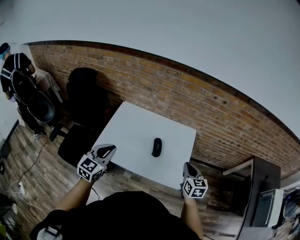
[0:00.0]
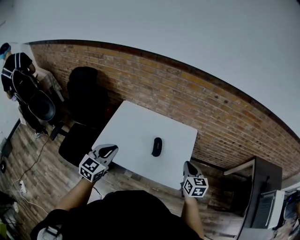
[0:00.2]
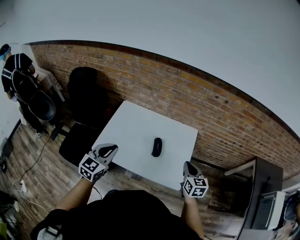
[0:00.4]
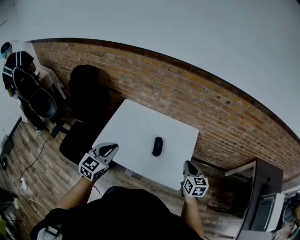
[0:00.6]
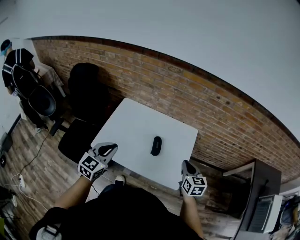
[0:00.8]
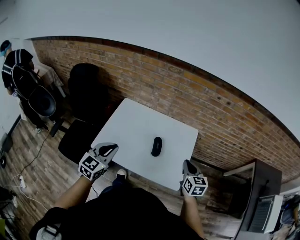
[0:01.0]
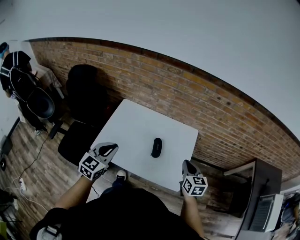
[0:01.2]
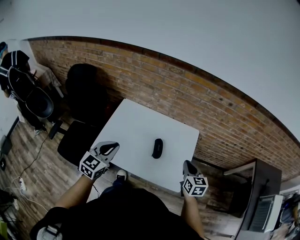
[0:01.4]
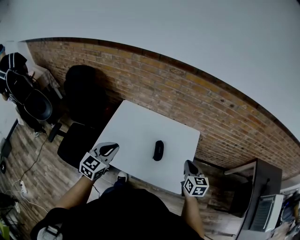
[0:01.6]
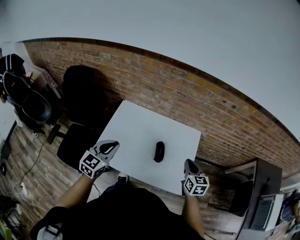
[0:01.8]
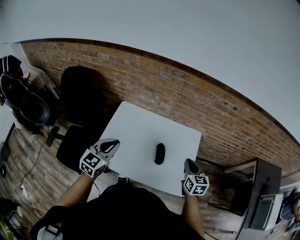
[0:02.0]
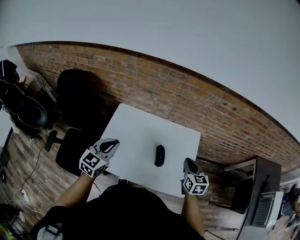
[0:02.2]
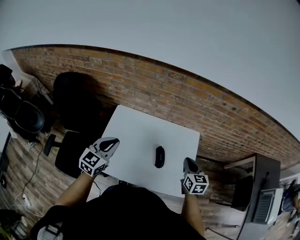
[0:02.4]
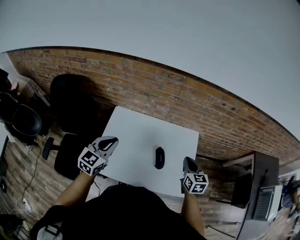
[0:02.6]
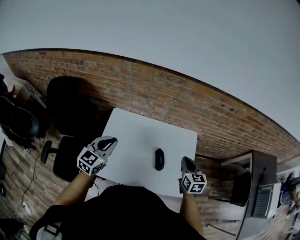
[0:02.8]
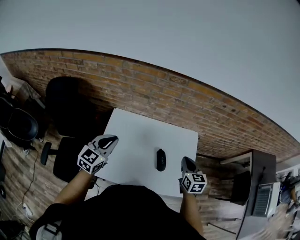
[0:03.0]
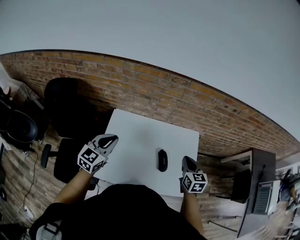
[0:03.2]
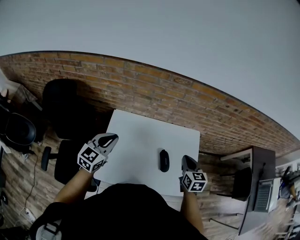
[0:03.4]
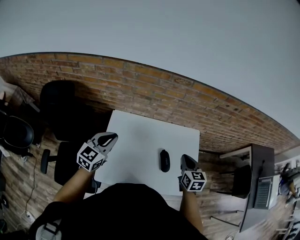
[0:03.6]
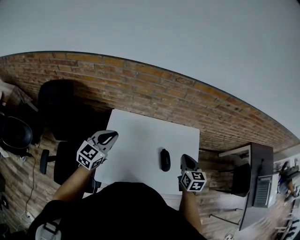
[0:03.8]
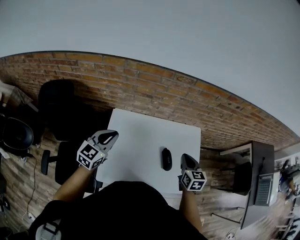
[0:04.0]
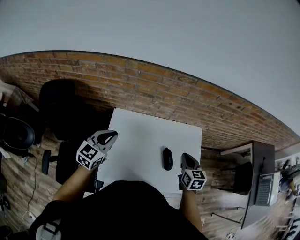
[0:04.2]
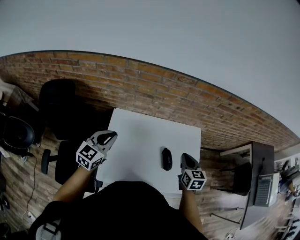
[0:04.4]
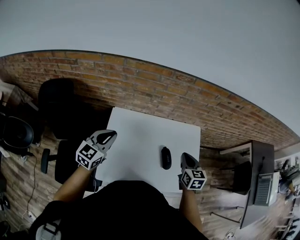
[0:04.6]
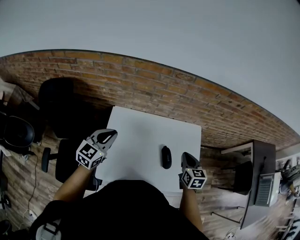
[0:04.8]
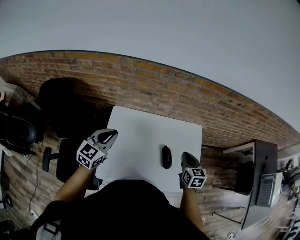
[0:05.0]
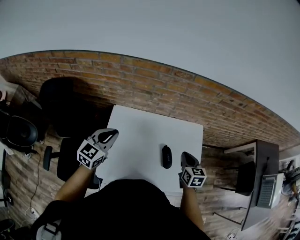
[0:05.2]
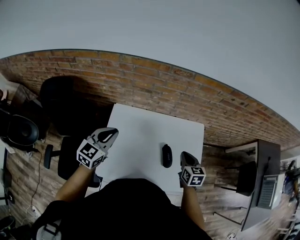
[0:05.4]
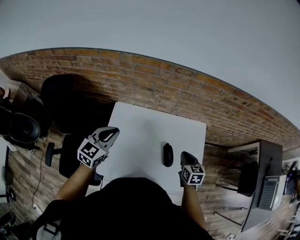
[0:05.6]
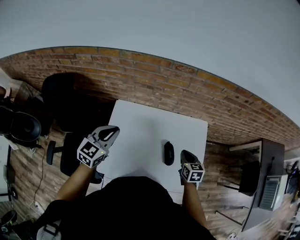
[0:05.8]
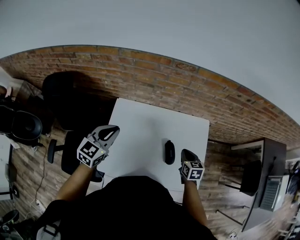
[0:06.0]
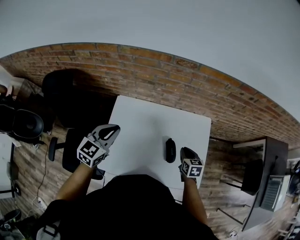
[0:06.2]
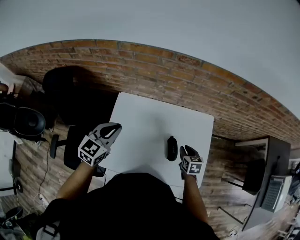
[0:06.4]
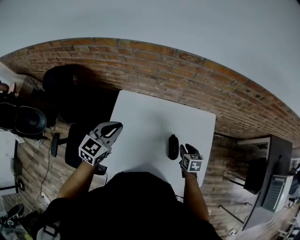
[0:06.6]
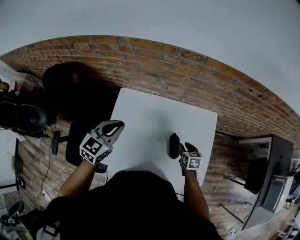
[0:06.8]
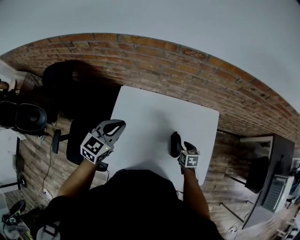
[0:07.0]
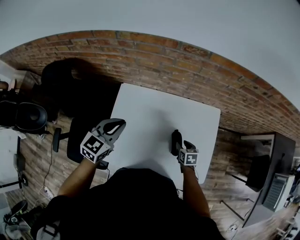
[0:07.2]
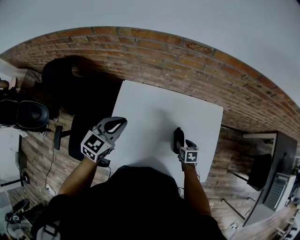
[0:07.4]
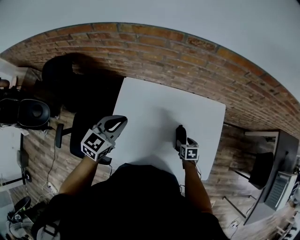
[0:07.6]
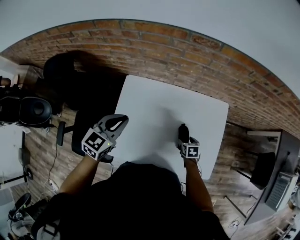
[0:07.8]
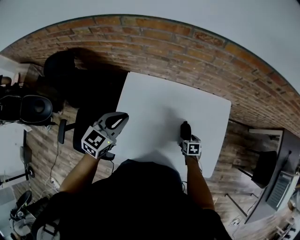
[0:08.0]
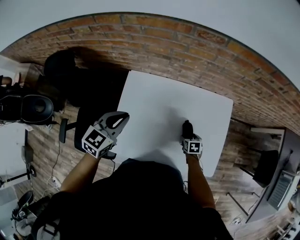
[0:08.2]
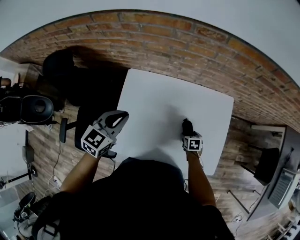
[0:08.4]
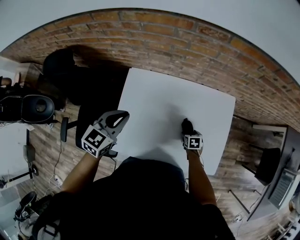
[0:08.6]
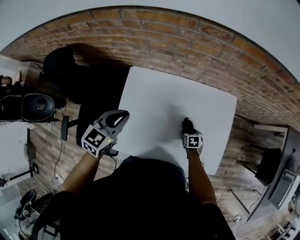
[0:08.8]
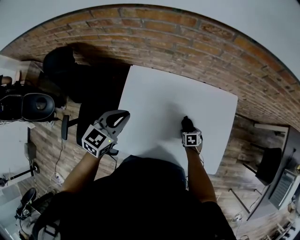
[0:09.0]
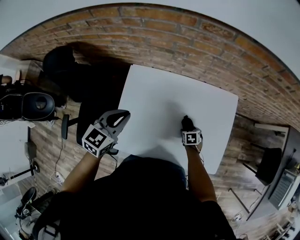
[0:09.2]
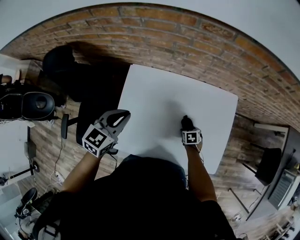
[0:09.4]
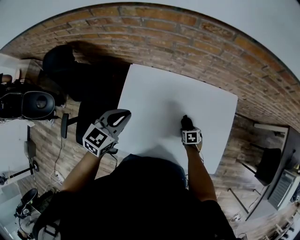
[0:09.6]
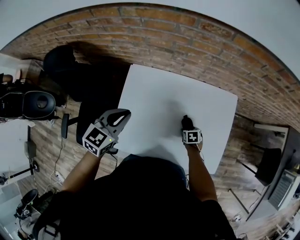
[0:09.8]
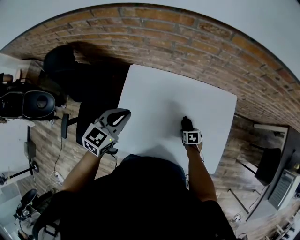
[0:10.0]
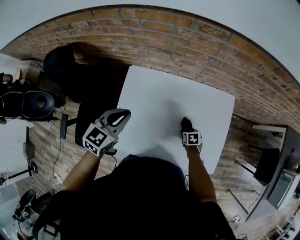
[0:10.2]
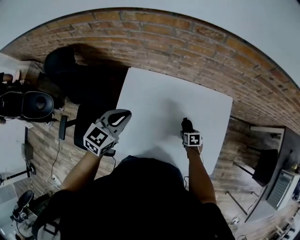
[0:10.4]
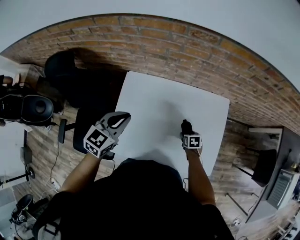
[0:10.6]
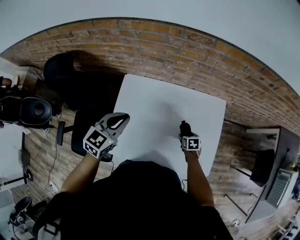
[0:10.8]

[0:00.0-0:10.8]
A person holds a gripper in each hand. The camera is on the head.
0:00.0 to 0:01.6: Both grippers travel together forward, roughly 5 cm.
0:01.6 to 0:03.0: The right gripper is displaced to the left and forward by some 15 cm. The left gripper is displaced forward and to the left by about 20 cm.
0:03.0 to 0:04.6: The grippers both shift to the left by roughly 5 cm.
0:04.6 to 0:06.2: The right gripper heads downward, covering about 15 cm.
0:06.2 to 0:07.8: The right gripper moves downward, approximately 15 cm, and opens up.
0:07.8 to 0:09.2: The right gripper is displaced downward by approximately 10 cm.
0:09.2 to 0:10.8: The right gripper travels upward by about 5 cm.

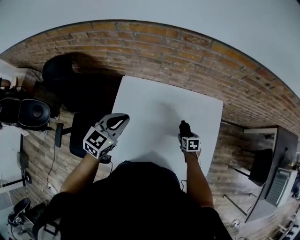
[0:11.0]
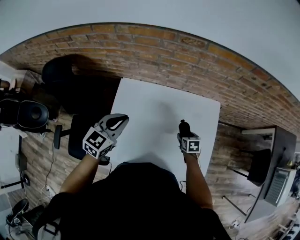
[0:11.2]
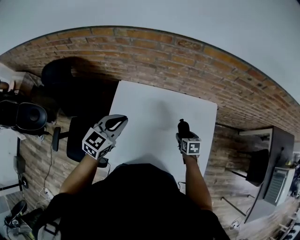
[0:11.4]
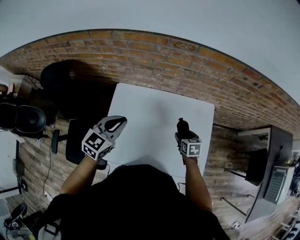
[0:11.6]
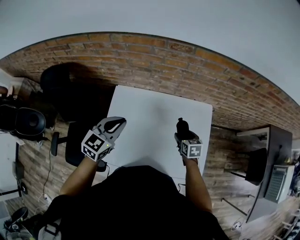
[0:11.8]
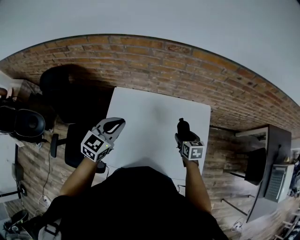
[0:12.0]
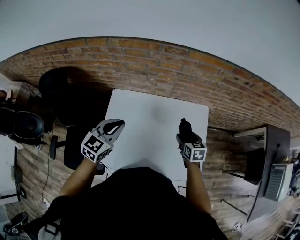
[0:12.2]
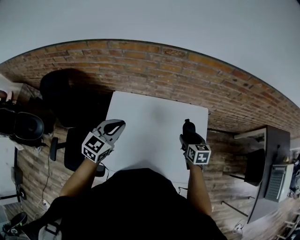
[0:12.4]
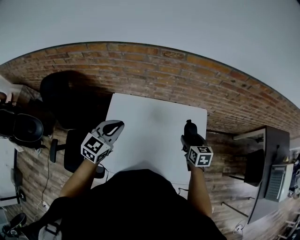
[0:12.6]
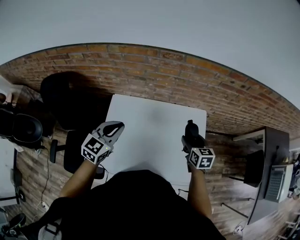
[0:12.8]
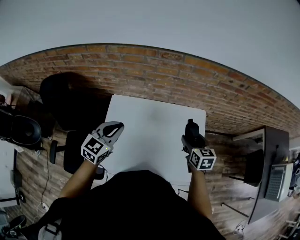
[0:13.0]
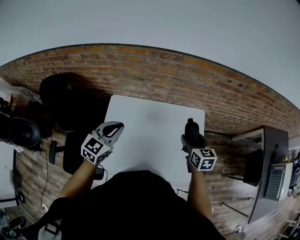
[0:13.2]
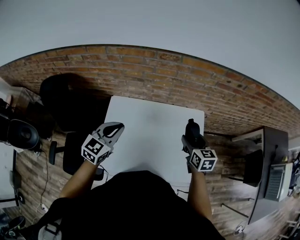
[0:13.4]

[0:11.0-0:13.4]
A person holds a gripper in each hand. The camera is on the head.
0:11.0 to 0:12.2: The right gripper goes roughly 15 cm upward, and changes its angle by roughly 20 degrees.
0:12.2 to 0:13.4: The right gripper shifts about 10 cm upward.

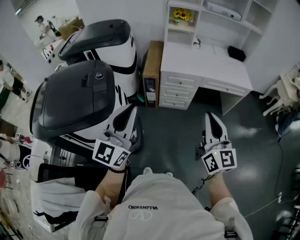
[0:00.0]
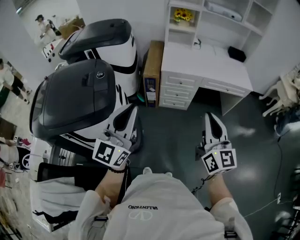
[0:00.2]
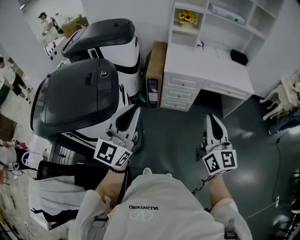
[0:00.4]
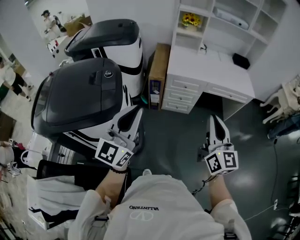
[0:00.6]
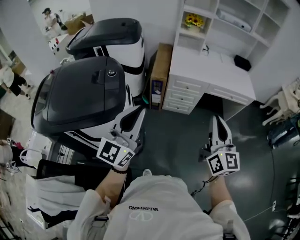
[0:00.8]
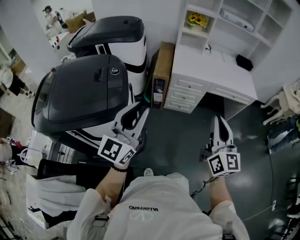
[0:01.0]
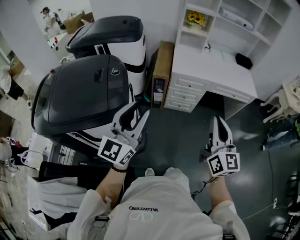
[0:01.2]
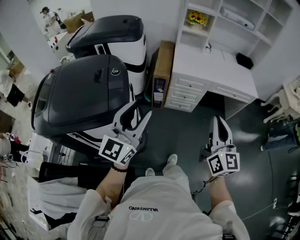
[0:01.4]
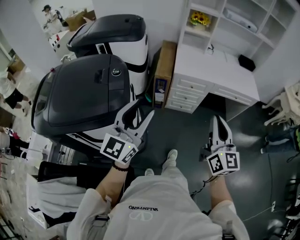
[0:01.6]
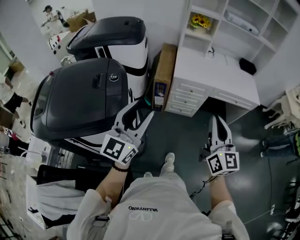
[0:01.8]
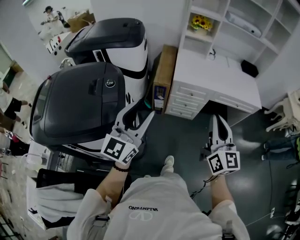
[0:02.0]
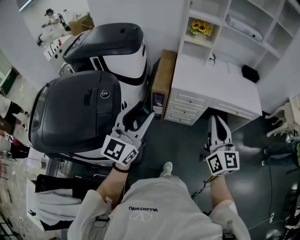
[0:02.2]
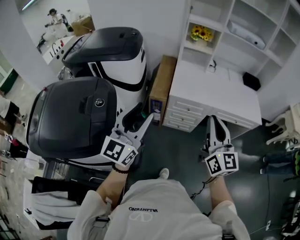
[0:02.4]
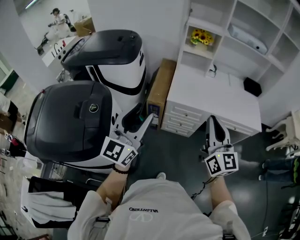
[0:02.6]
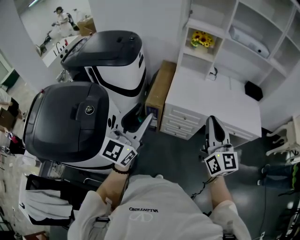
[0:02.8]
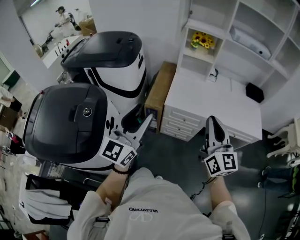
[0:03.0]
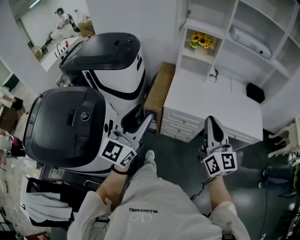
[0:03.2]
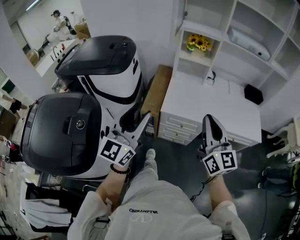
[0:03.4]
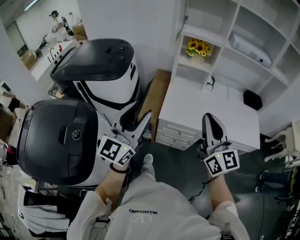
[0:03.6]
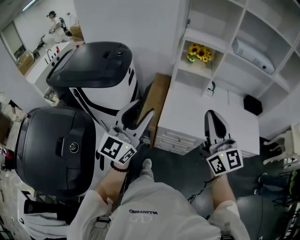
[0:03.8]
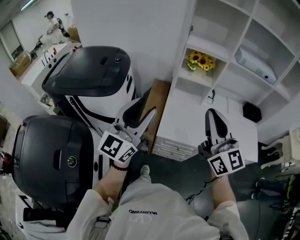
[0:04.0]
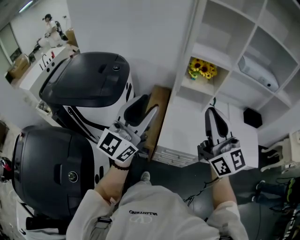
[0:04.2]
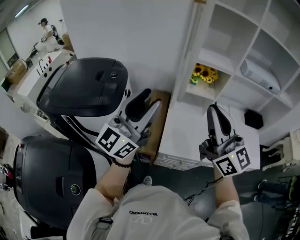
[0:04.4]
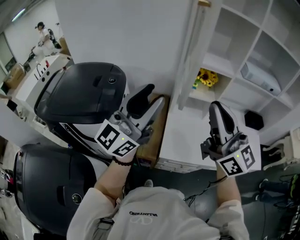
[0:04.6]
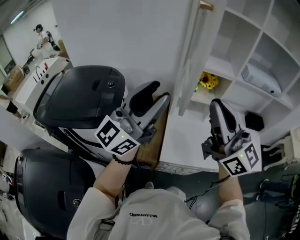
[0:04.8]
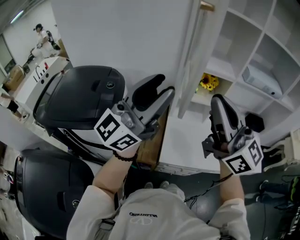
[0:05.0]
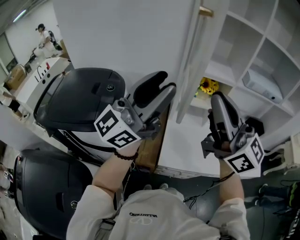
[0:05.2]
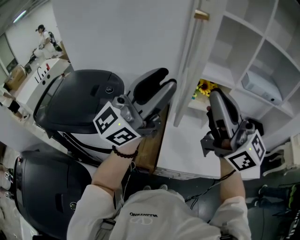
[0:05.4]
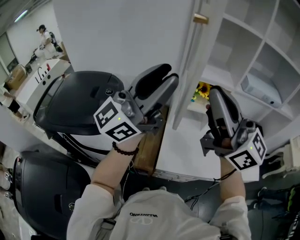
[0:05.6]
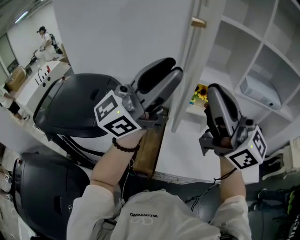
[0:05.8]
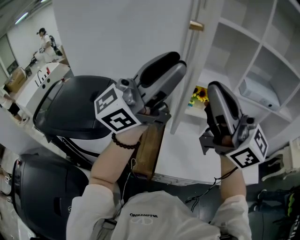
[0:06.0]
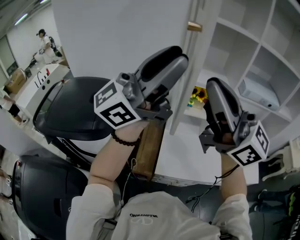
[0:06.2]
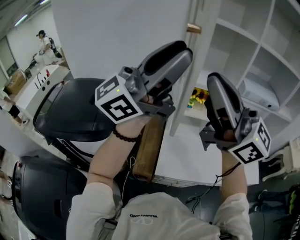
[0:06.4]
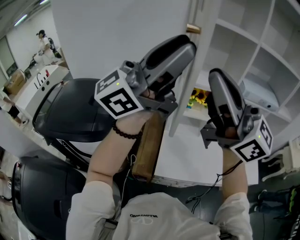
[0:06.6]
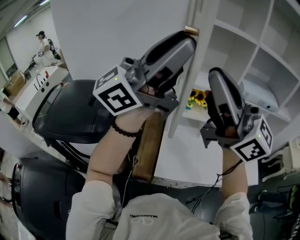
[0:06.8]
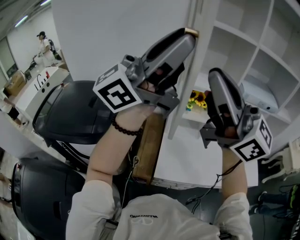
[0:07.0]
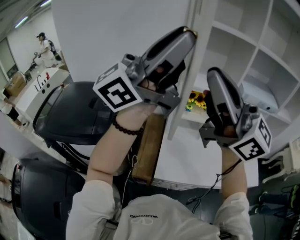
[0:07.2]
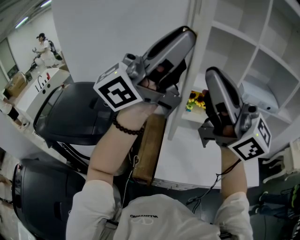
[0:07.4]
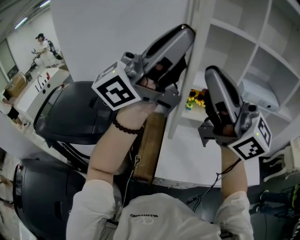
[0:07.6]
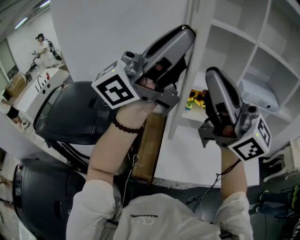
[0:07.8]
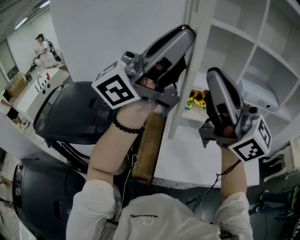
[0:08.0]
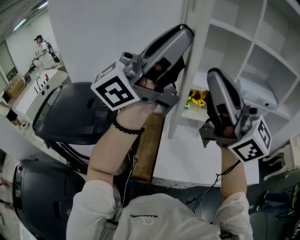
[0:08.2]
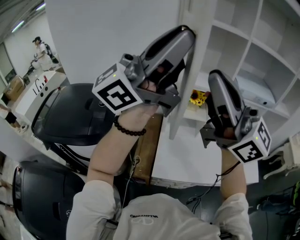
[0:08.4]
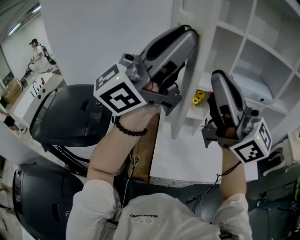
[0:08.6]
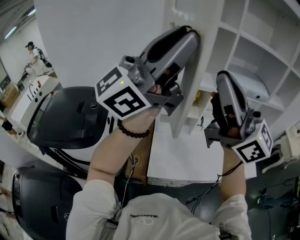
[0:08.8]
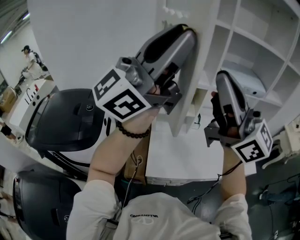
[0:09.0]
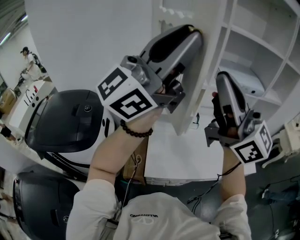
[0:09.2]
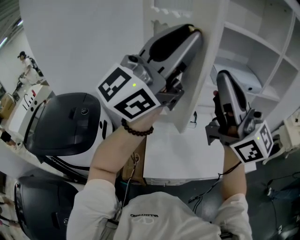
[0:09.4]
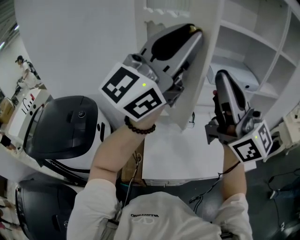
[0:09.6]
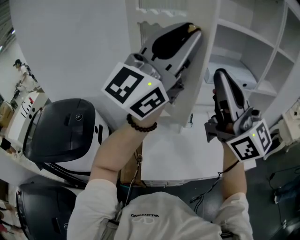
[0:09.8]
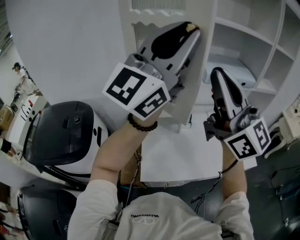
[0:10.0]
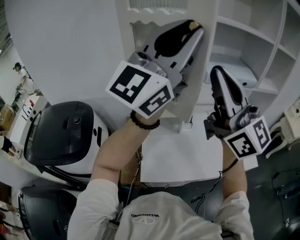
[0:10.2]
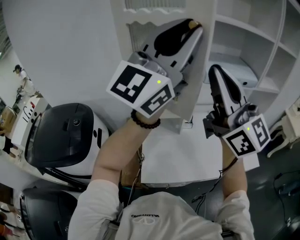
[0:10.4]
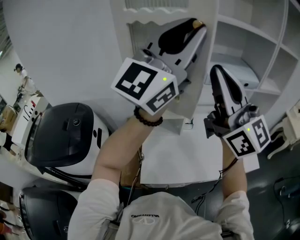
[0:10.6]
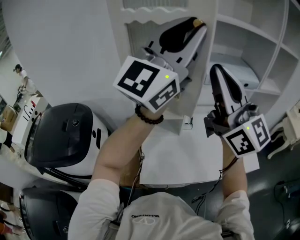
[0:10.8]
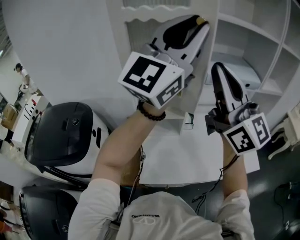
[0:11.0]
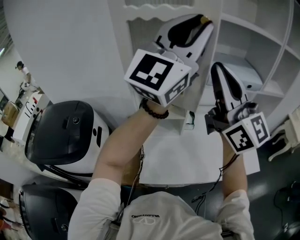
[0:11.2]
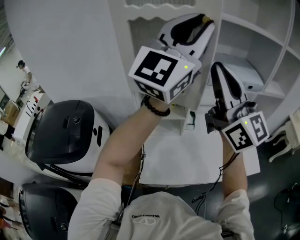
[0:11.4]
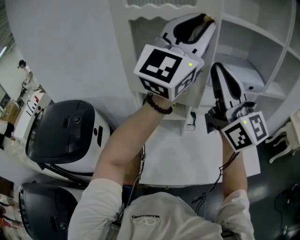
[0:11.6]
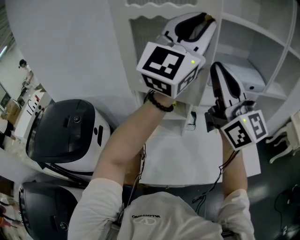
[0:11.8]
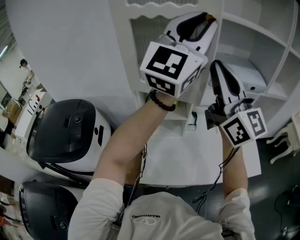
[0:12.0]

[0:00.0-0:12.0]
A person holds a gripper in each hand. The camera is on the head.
0:00.0 to 0:01.6: The two grippers go roughly 5 cm to the left. The left gripper opens.
0:01.6 to 0:03.0: The right gripper moves forward, approximately 30 cm; the left gripper is displaced forward and to the right by roughly 25 cm.
0:03.0 to 0:04.4: The right gripper is displaced forward and upward by about 30 cm. The left gripper shifts about 35 cm forward, and swivels approximately 20 degrees.
0:04.4 to 0:06.0: Both grippers travel together upward and forward, some 15 cm. The left gripper changes its angle by roughly 30 degrees.
0:06.0 to 0:07.6: The left gripper is displaced upward by some 10 cm.
0:07.6 to 0:09.0: The left gripper changes place by roughly 10 cm. Meanwhile the right gripper moves some 10 cm.
0:09.0 to 0:10.4: The right gripper moves forward and to the right, about 10 cm. The left gripper shifts about 15 cm to the right and forward, and rotates about 20 degrees.
0:10.4 to 0:12.0: The grippers both shift forward by roughly 10 cm.
